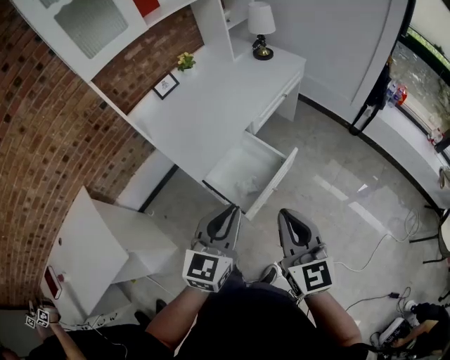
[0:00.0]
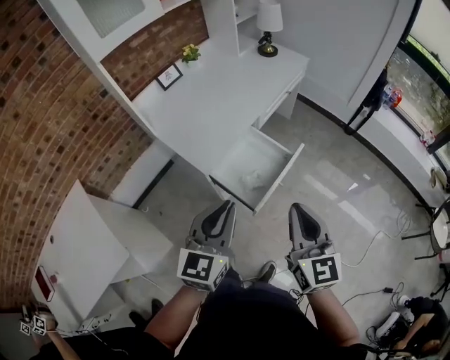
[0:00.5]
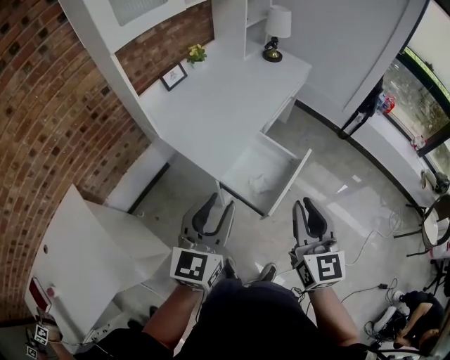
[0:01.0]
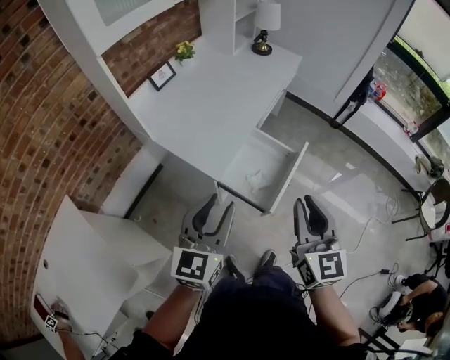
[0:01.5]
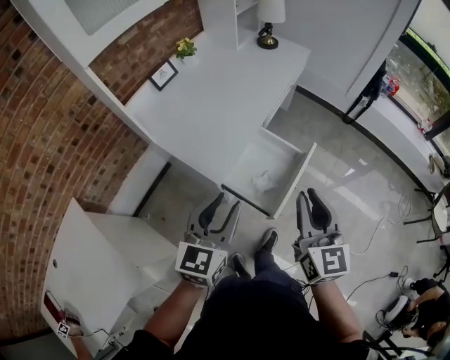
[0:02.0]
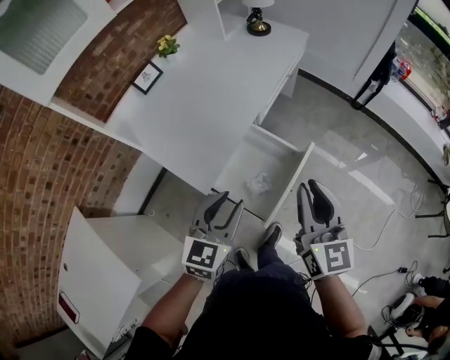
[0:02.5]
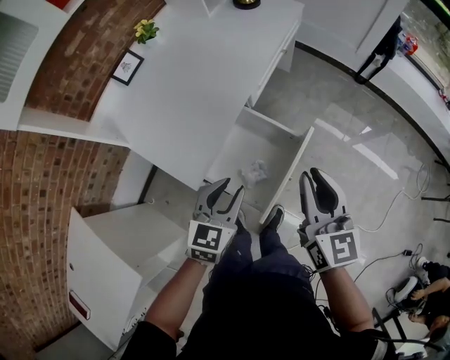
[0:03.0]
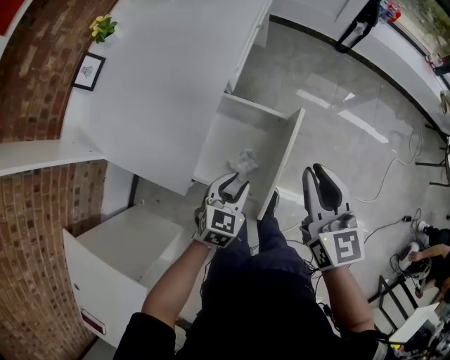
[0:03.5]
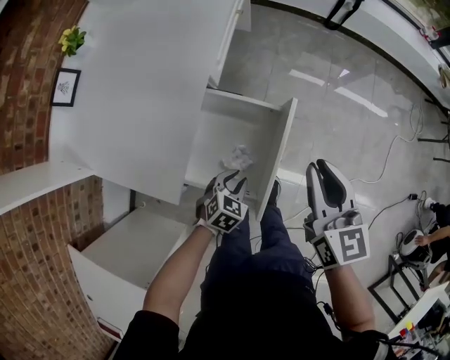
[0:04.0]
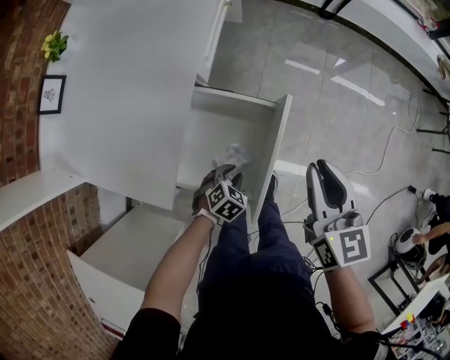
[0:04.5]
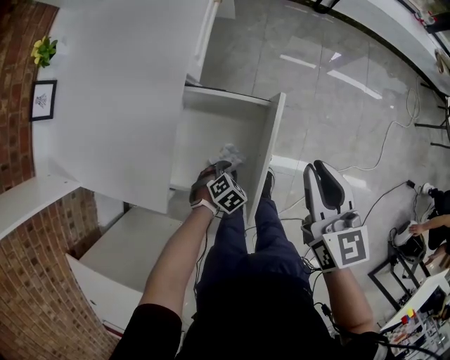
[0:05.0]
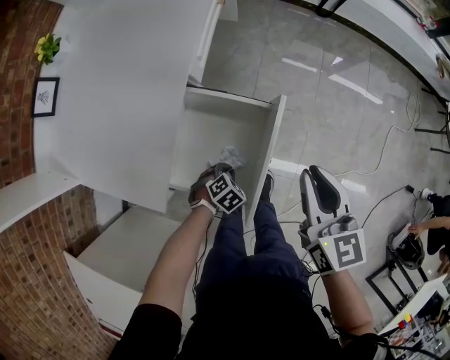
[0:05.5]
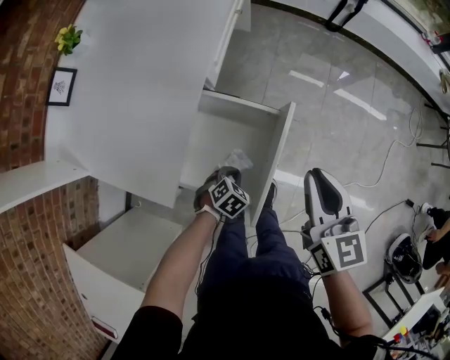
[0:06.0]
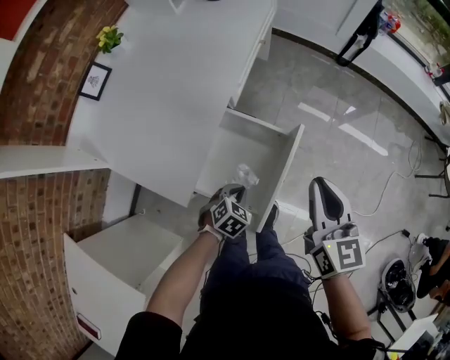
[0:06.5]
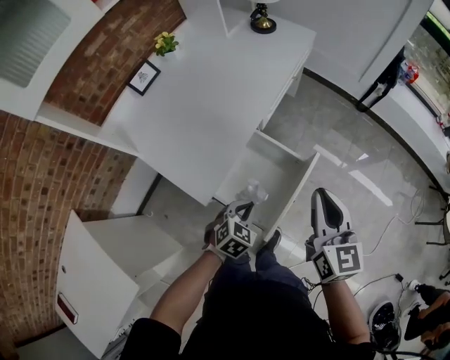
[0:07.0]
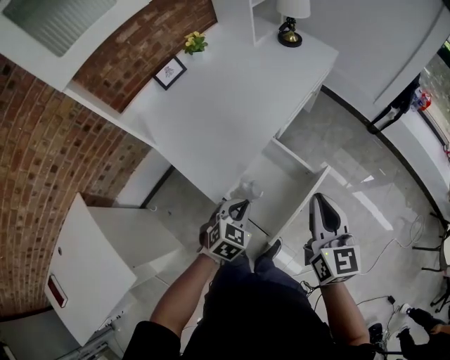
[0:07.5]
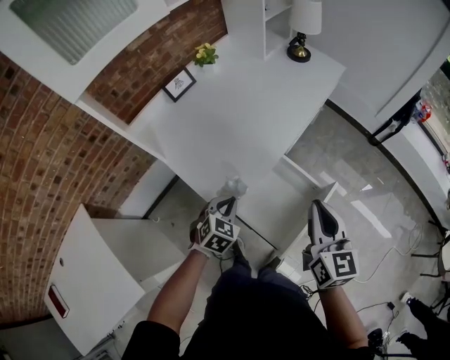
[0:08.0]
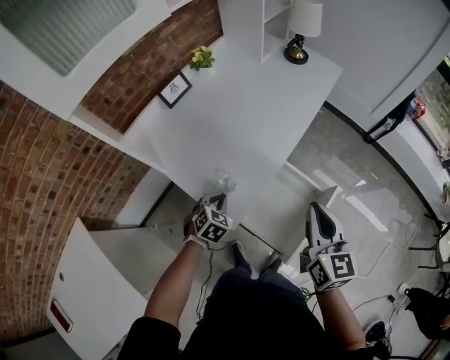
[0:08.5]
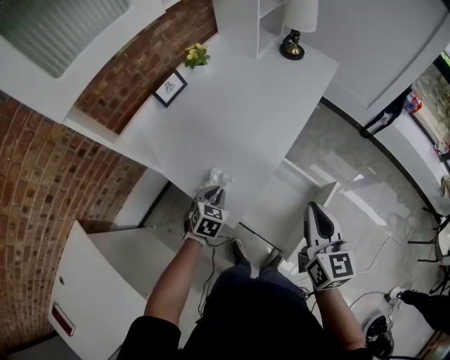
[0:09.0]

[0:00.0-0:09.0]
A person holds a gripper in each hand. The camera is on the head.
0:00.0 to 0:02.0: The right gripper shifts approximately 15 cm to the left and forward; the left gripper heads to the left, covering some 15 cm, and opens.
0:02.0 to 0:04.5: The left gripper heads downward, covering approximately 40 cm, and angles its fingers downward, by about 50 degrees. Meanwhile the right gripper ends up some 30 cm from where it was, and rotates roughly 20 degrees.
0:04.5 to 0:07.0: The right gripper goes approximately 10 cm upward. Meanwhile the left gripper moves upward, roughly 20 cm, and swivels about 30 degrees.
0:07.0 to 0:09.0: The left gripper heads to the left and forward, covering roughly 25 cm. Meanwhile the right gripper travels to the left by about 15 cm.

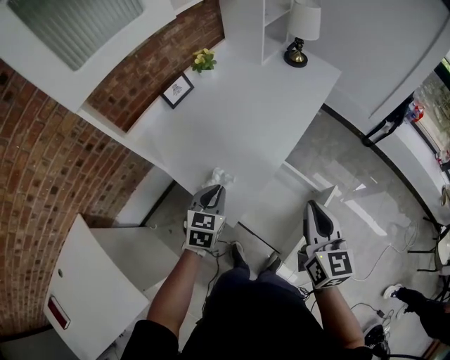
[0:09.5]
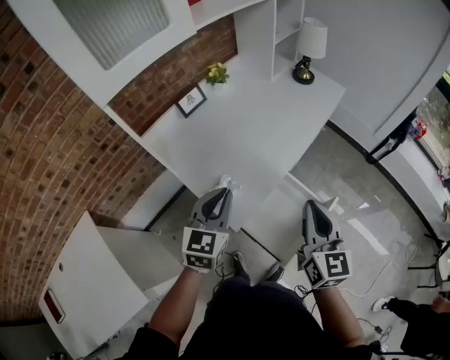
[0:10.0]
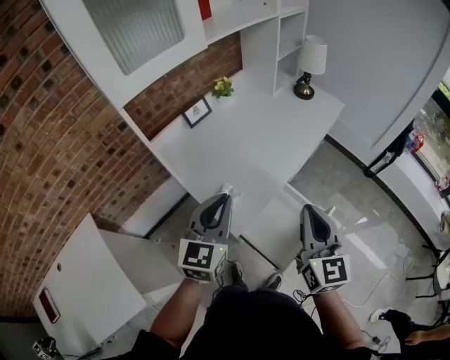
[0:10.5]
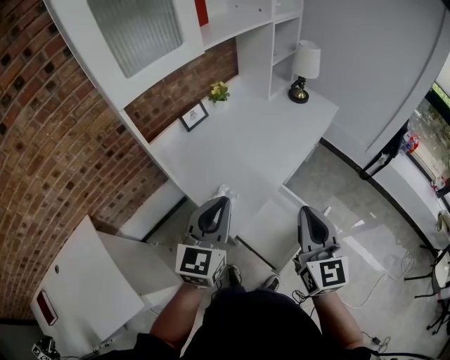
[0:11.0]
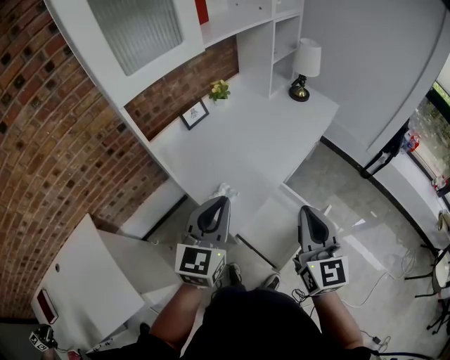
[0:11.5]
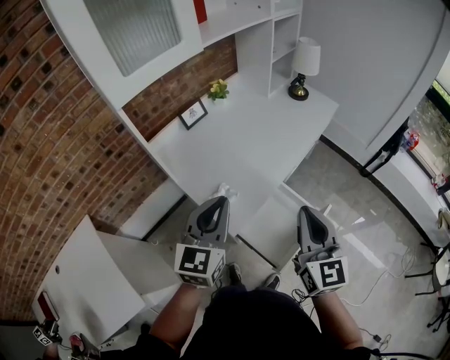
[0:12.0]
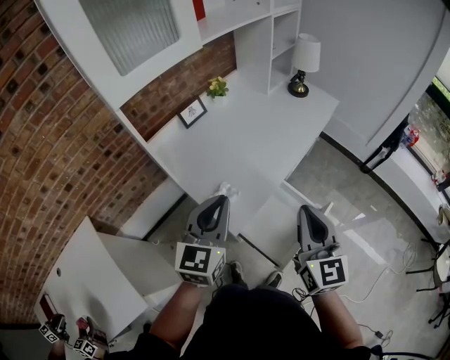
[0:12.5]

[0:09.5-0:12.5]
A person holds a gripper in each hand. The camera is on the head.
0:09.5 to 0:11.0: The left gripper shifts some 20 cm upward, and swivels approximately 30 degrees; the right gripper moves upward, about 10 cm.
0:11.0 to 0:12.5: The grippers move only a little.

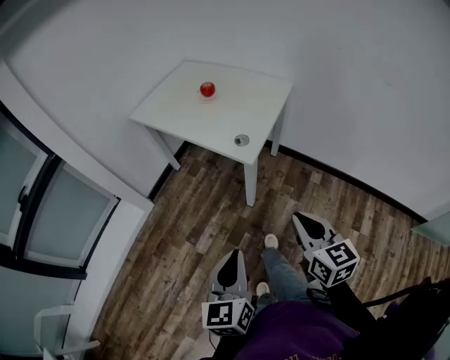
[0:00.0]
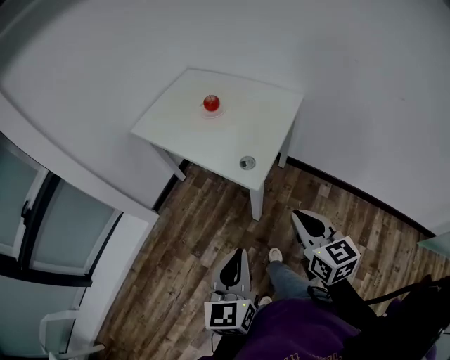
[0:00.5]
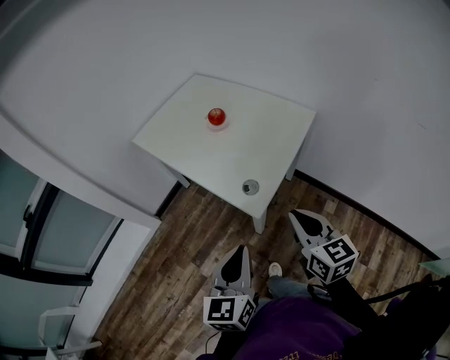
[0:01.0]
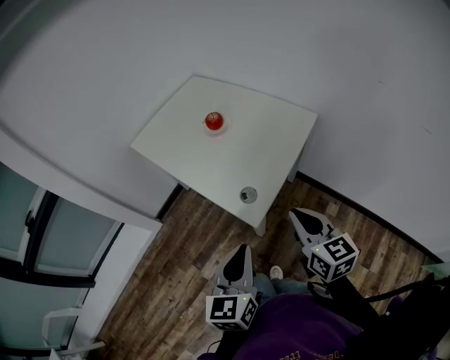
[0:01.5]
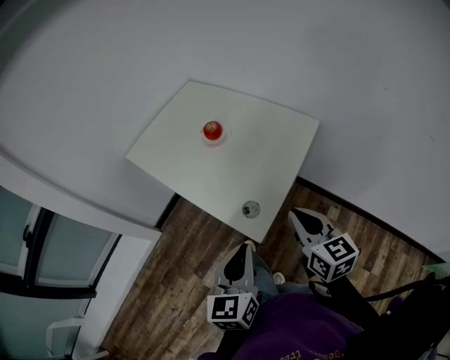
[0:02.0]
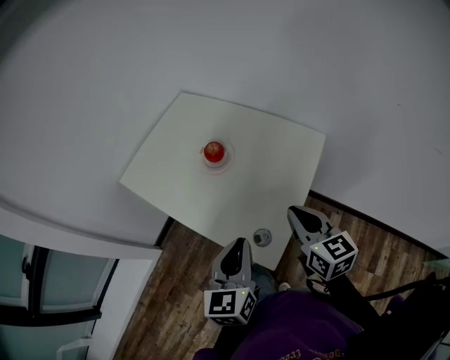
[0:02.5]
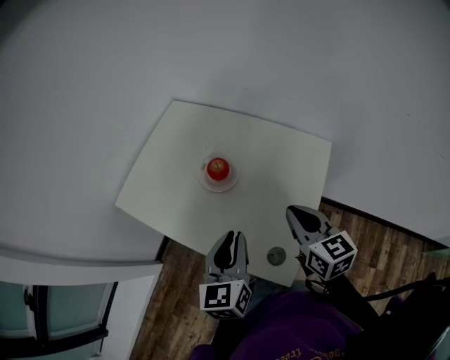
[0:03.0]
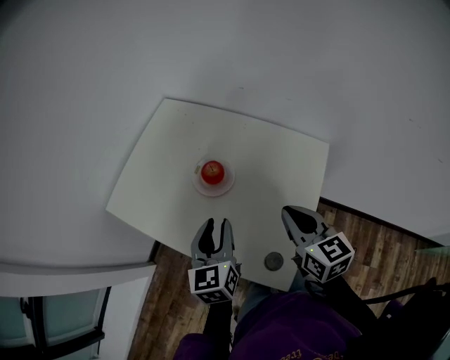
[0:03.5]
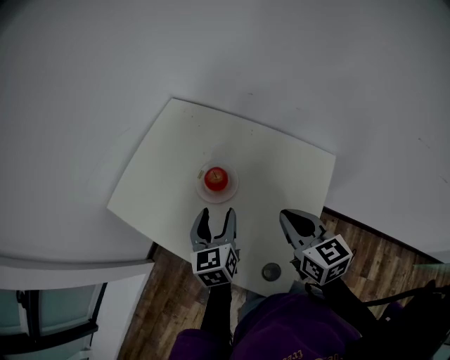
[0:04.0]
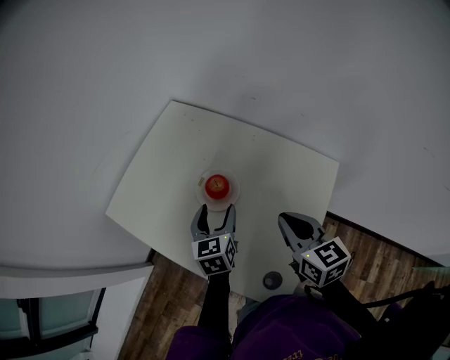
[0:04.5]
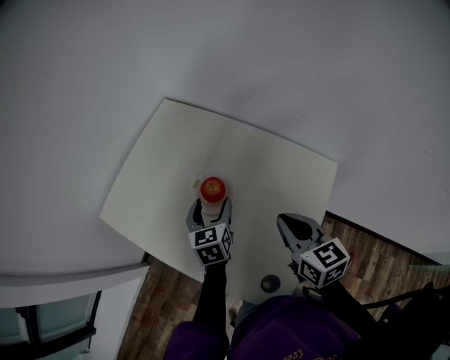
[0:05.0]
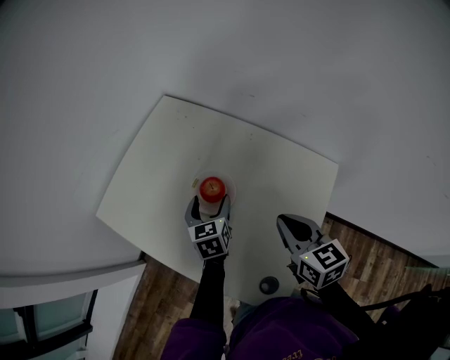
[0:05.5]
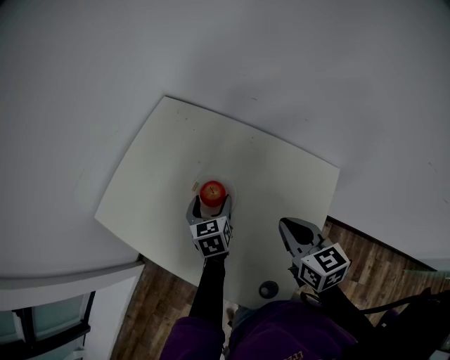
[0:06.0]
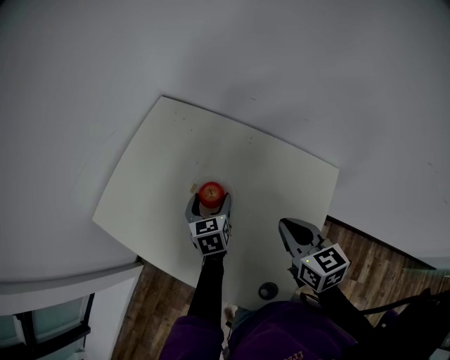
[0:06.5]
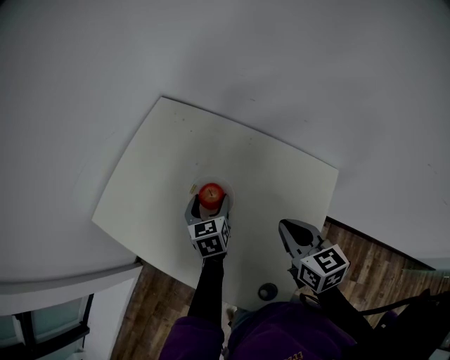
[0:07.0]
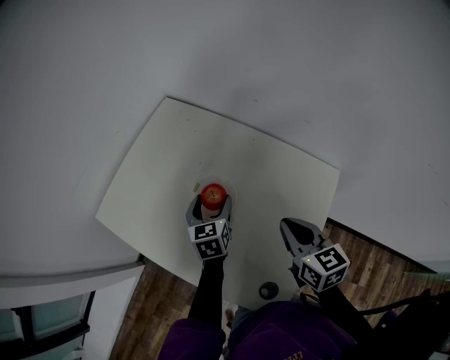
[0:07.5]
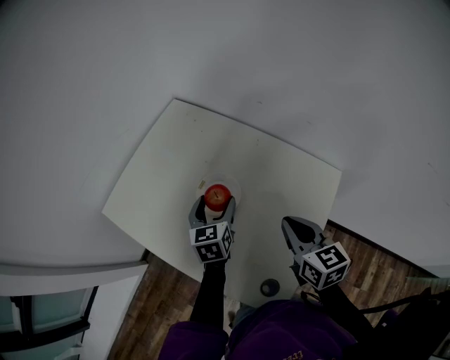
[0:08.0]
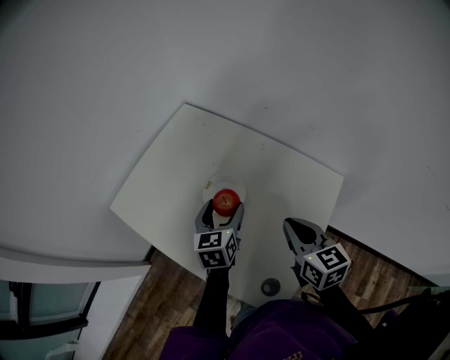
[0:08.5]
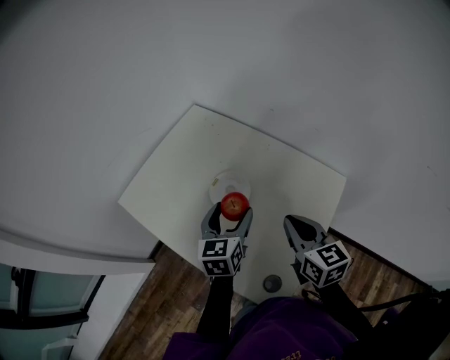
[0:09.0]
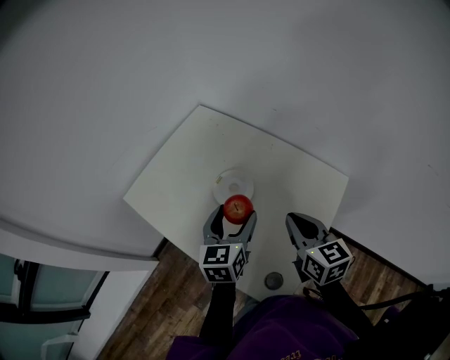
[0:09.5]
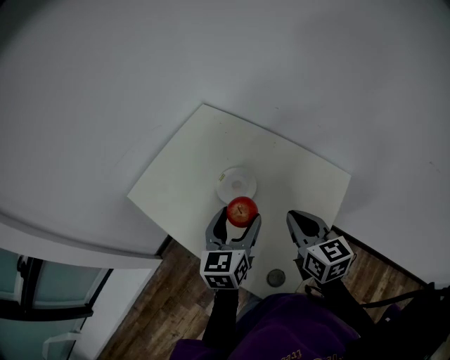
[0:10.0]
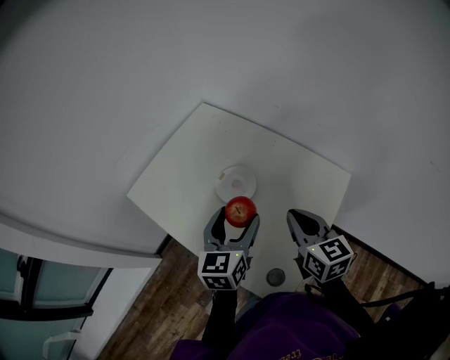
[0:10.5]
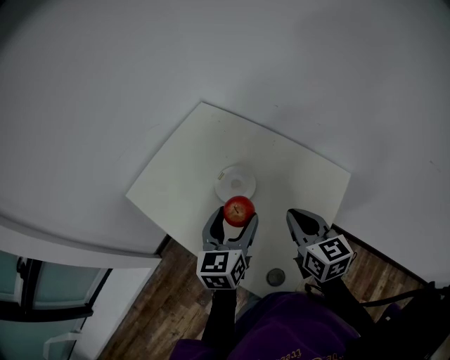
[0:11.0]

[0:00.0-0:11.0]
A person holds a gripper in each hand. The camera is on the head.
0:00.0 to 0:02.0: The grippers both shift forward by approximately 30 cm.
0:02.0 to 0:03.5: The two grippers go approximately 25 cm forward.
0:03.5 to 0:05.5: The right gripper is displaced forward by approximately 10 cm. The left gripper shifts some 20 cm forward and downward, and opens up.
0:05.5 to 0:07.5: The grippers make only small movements.
0:07.5 to 0:09.0: The right gripper shifts by about 5 cm. The left gripper moves upward and backward, about 15 cm.
0:09.0 to 0:11.0: The left gripper shifts by about 5 cm.

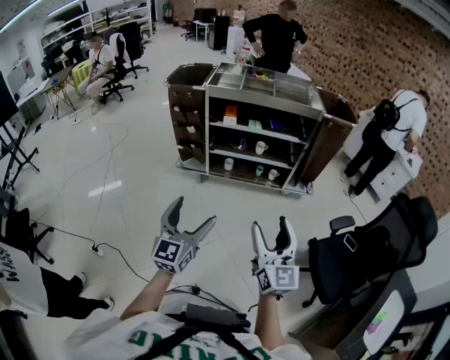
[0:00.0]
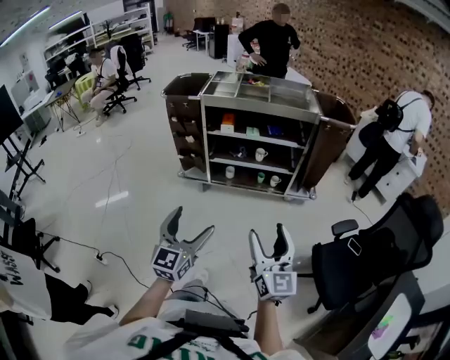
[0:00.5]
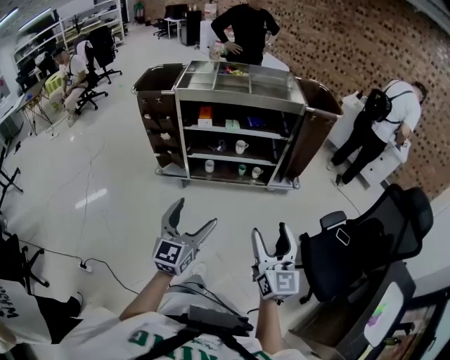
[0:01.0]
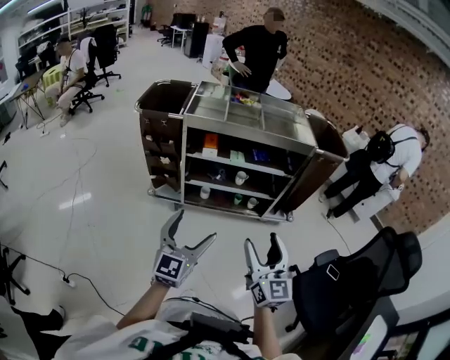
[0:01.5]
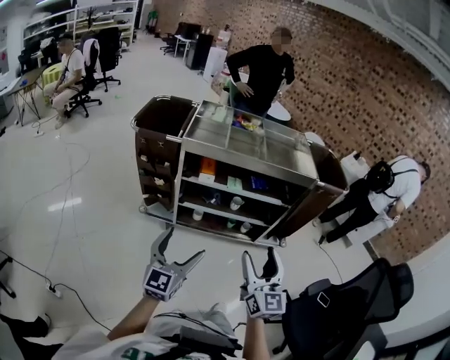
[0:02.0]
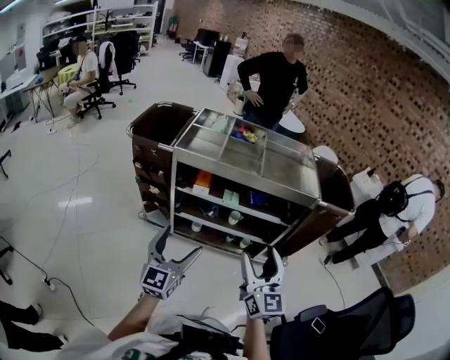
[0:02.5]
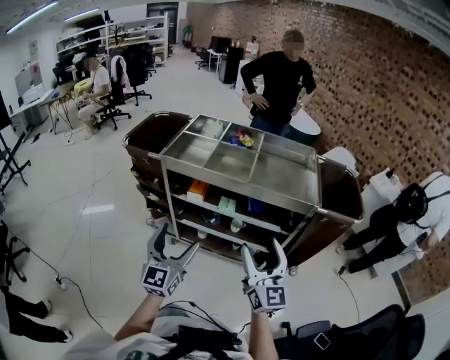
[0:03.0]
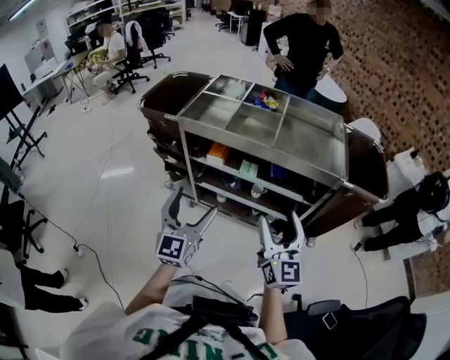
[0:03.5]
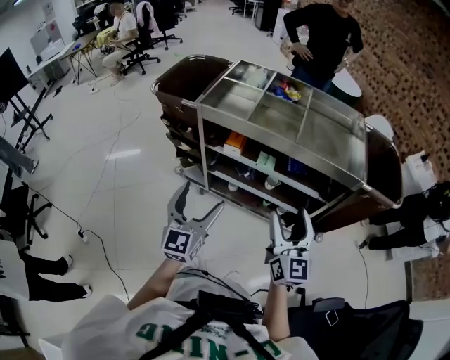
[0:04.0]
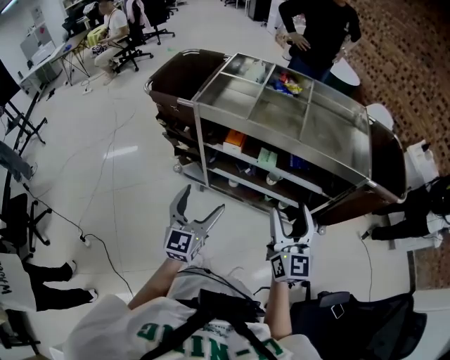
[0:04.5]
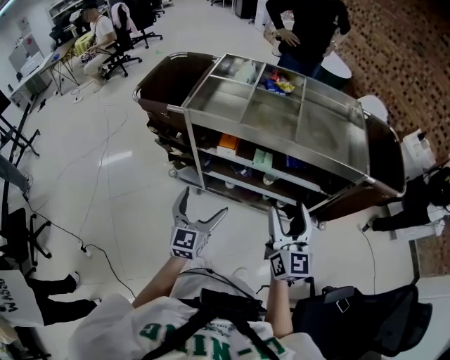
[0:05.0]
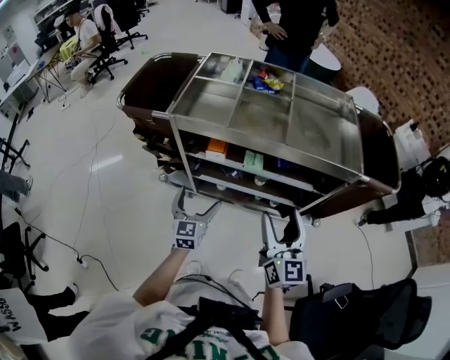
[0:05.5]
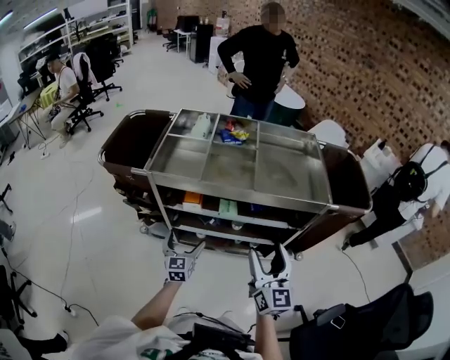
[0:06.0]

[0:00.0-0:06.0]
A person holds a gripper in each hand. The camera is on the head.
0:00.0 to 0:02.0: The grippers both shift forward by roughly 30 cm.
0:02.0 to 0:04.0: The grippers both shift forward and to the right by about 20 cm. The left gripper rotates roughly 20 degrees.
0:04.0 to 0:06.0: The left gripper heads downward and forward, covering about 25 cm. Meanwhile the right gripper moves forward, roughly 5 cm.
